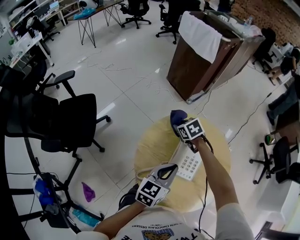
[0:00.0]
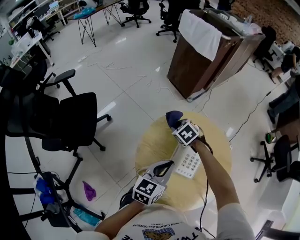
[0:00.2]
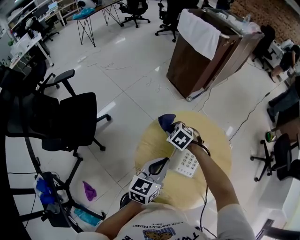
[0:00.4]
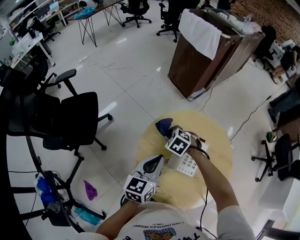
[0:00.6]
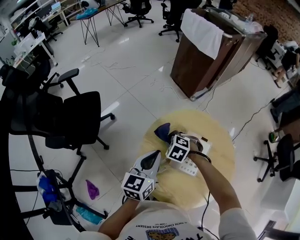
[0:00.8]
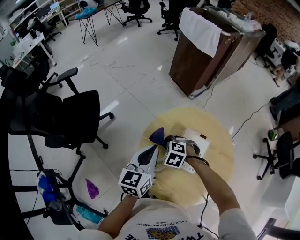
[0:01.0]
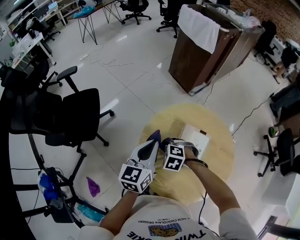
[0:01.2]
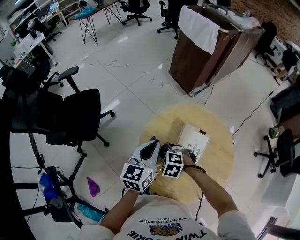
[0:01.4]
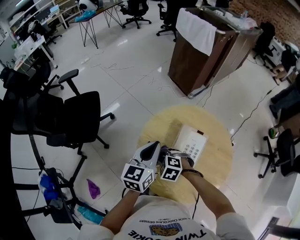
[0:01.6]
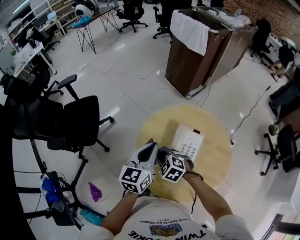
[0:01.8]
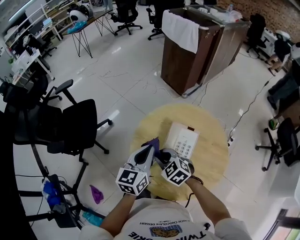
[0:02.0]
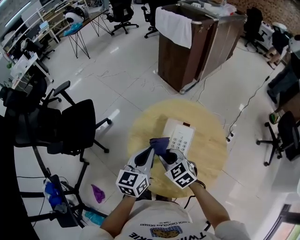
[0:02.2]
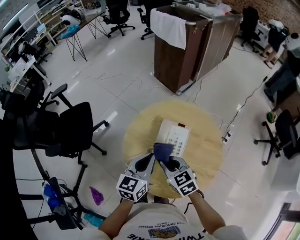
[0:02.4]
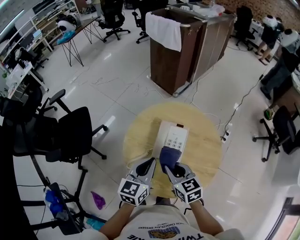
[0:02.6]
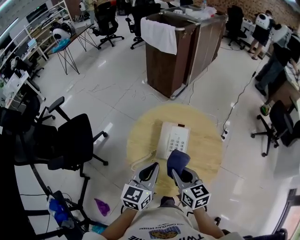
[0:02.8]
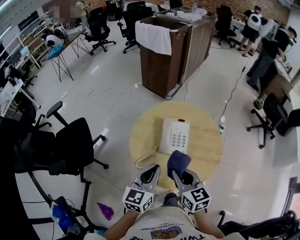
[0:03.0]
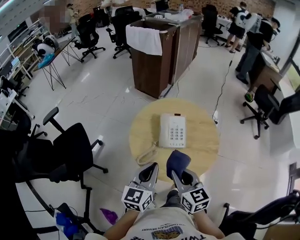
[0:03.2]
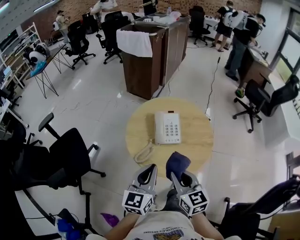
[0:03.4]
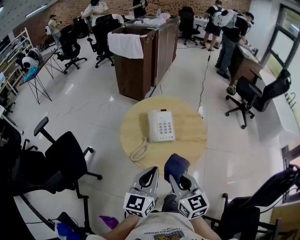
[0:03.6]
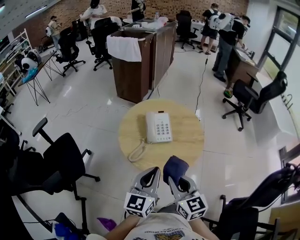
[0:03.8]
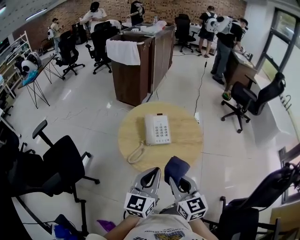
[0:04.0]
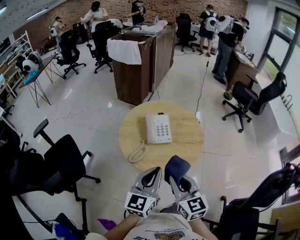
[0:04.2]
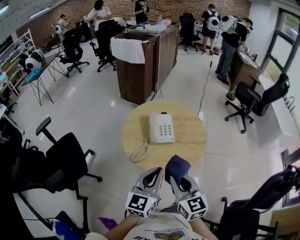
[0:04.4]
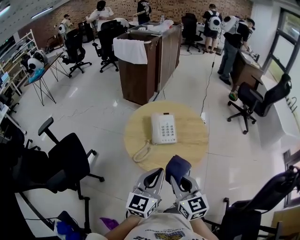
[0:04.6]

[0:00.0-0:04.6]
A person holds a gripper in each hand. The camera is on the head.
0:00.0 to 0:01.6: The right gripper shifts approximately 25 cm backward and to the left, and rotates around the line of its fingers by roughly 40 degrees, counterclockwise from behind. The left gripper heads to the left, covering some 10 cm.
0:01.6 to 0:03.0: The right gripper shifts approximately 15 cm upward, and tips its fingers upward by some 40 degrees. Meanwhile the left gripper changes place by some 15 cm.
0:03.0 to 0:04.6: The left gripper heads backward, covering some 10 cm, while the right gripper moves backward and upward, some 15 cm.

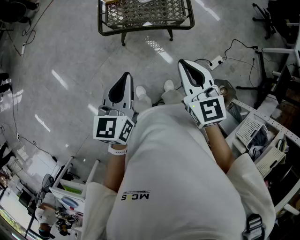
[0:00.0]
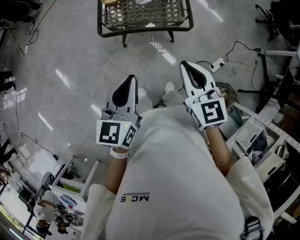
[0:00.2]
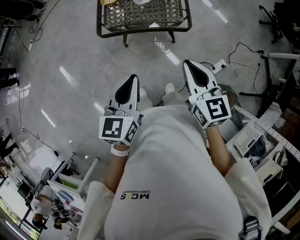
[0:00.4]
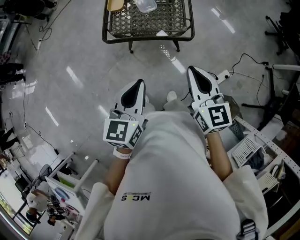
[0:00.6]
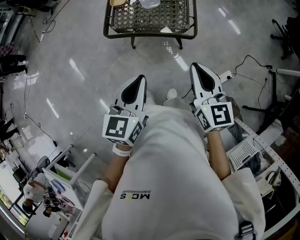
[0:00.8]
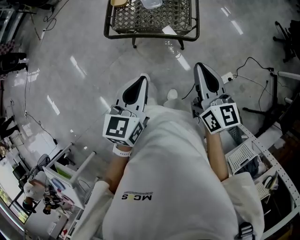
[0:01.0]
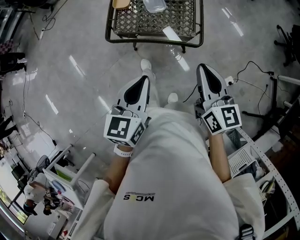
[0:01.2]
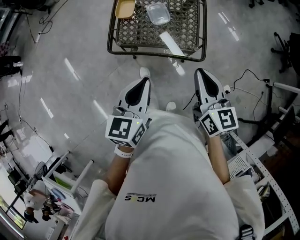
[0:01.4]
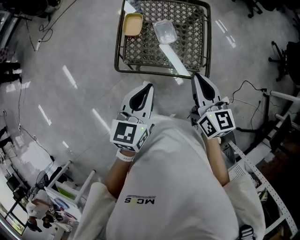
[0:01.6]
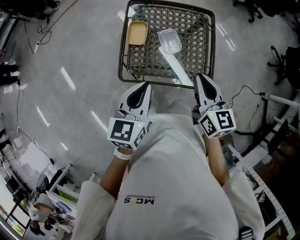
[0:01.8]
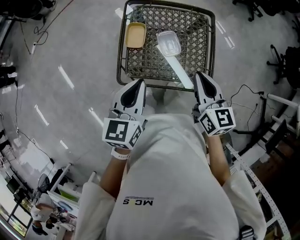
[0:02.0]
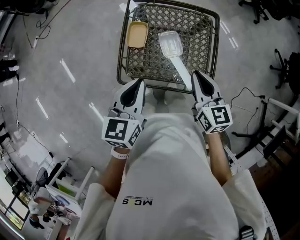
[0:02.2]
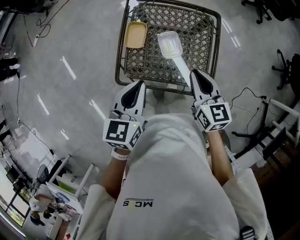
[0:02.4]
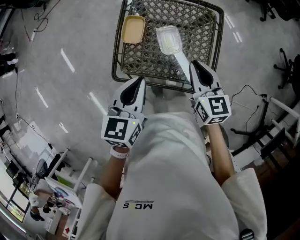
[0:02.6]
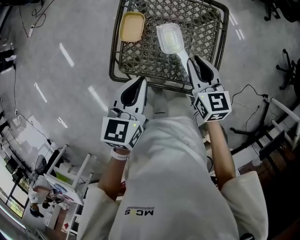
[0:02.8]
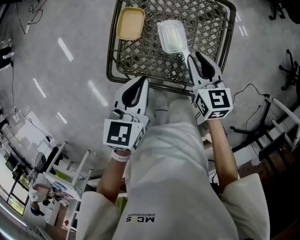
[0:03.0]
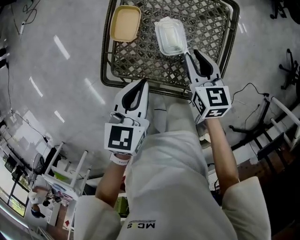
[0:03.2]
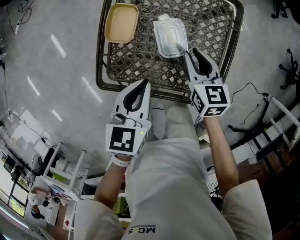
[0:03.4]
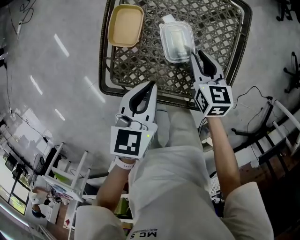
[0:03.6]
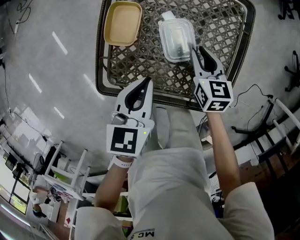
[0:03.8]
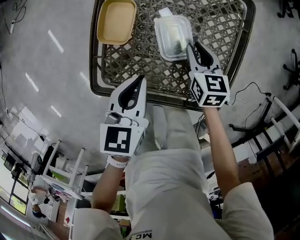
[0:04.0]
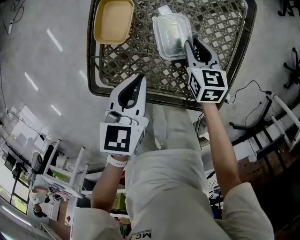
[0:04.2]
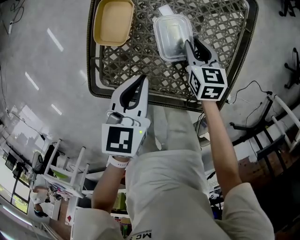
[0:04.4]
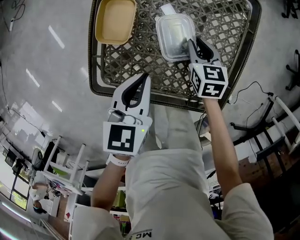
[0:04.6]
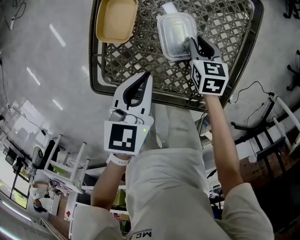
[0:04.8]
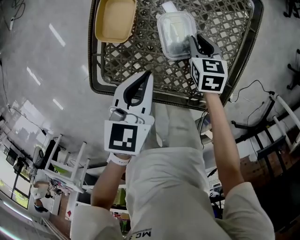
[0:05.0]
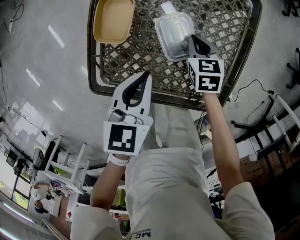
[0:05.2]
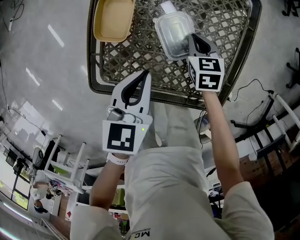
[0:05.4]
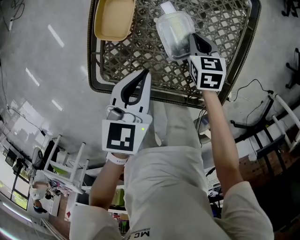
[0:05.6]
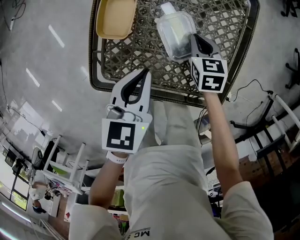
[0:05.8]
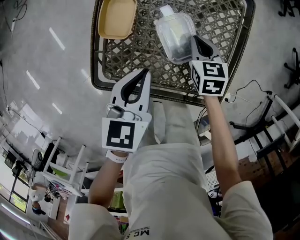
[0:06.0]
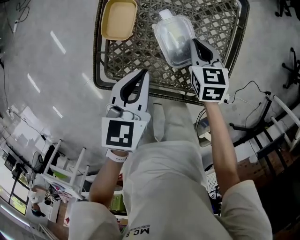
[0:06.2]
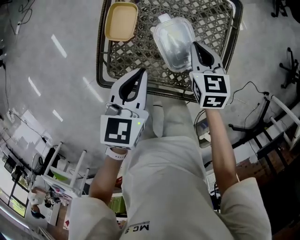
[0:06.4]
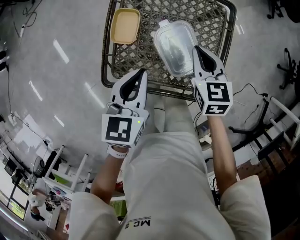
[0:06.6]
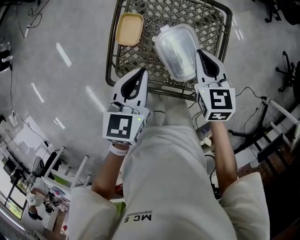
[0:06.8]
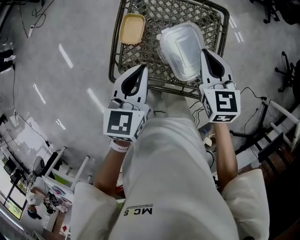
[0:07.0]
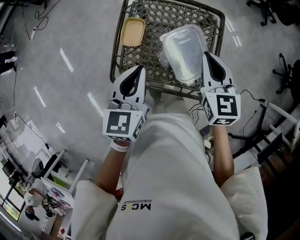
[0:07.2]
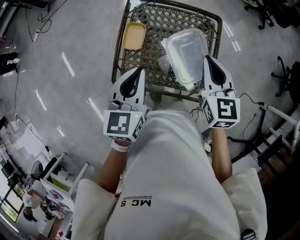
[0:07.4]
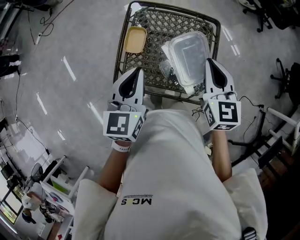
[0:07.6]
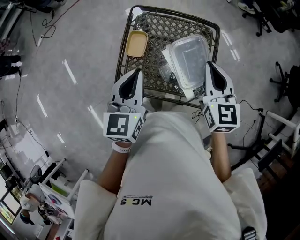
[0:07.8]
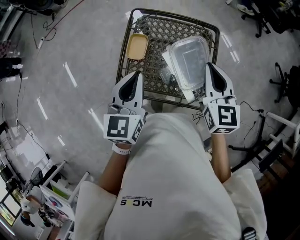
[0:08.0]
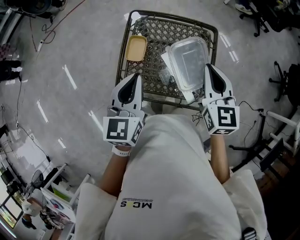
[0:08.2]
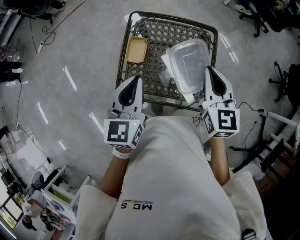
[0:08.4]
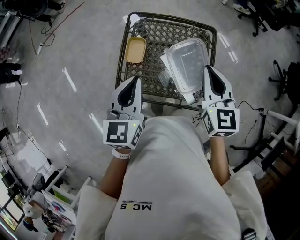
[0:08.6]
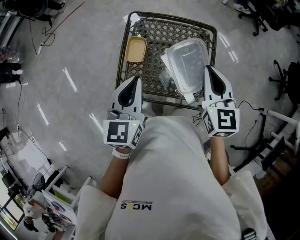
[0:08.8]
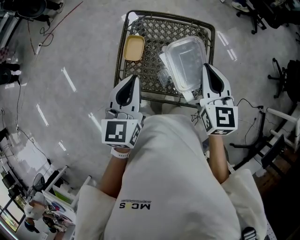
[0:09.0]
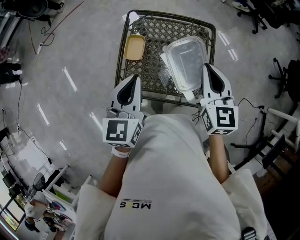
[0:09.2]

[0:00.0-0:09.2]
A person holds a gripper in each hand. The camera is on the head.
0:00.0 to 0:01.6: The two grippers go approximately 25 cm forward.
0:01.6 to 0:03.0: Both grippers move forward and downward, approximately 25 cm. The right gripper changes its angle by some 20 degrees.
0:03.0 to 0:04.6: The left gripper travels downward by approximately 15 cm. Meanwhile the right gripper shifts some 20 cm downward.
0:04.6 to 0:06.2: The right gripper shifts roughly 5 cm upward.
0:06.2 to 0:07.6: The right gripper is displaced upward by roughly 30 cm, and turns by roughly 30 degrees, while the left gripper is displaced upward by approximately 20 cm, and swivels about 20 degrees.
0:07.6 to 0:09.2: The grippers stay close to where they were, moving slightly.

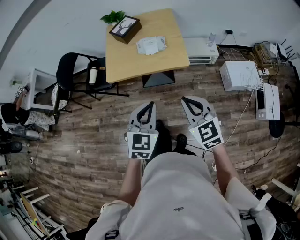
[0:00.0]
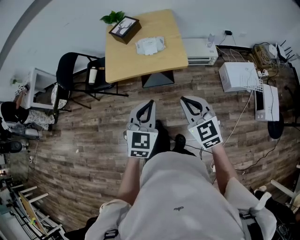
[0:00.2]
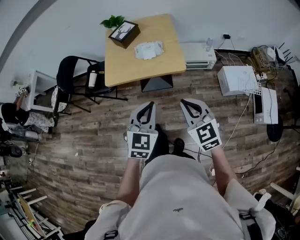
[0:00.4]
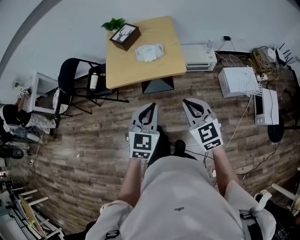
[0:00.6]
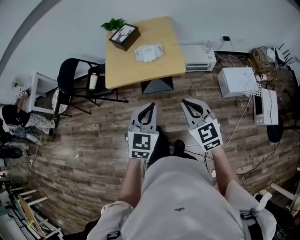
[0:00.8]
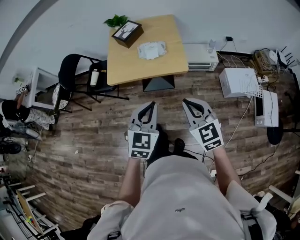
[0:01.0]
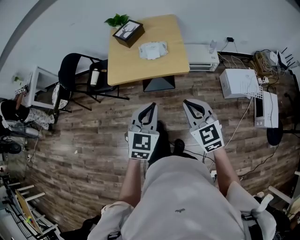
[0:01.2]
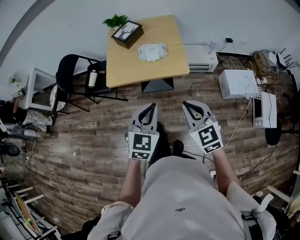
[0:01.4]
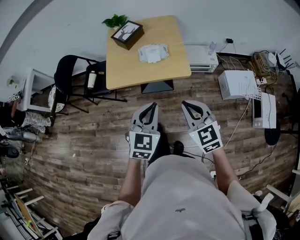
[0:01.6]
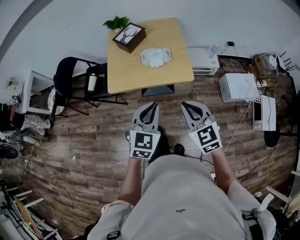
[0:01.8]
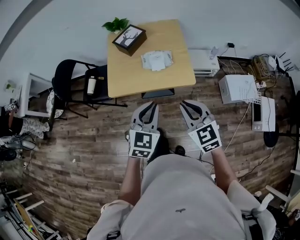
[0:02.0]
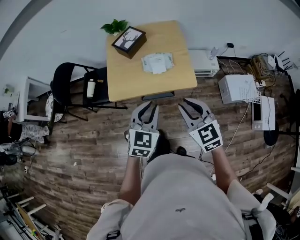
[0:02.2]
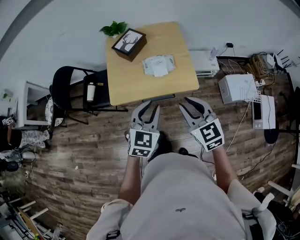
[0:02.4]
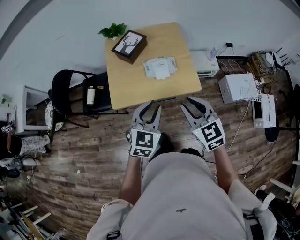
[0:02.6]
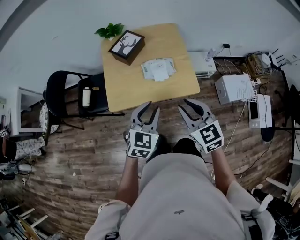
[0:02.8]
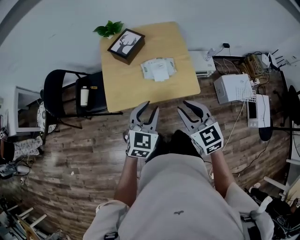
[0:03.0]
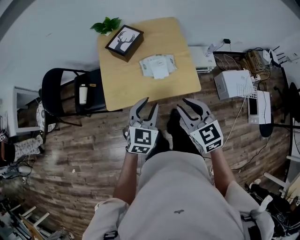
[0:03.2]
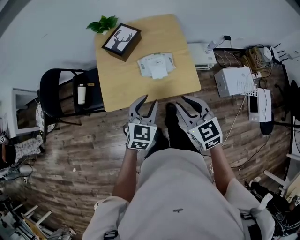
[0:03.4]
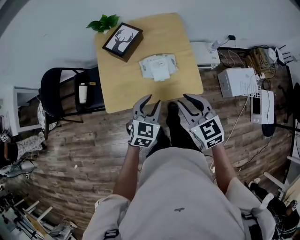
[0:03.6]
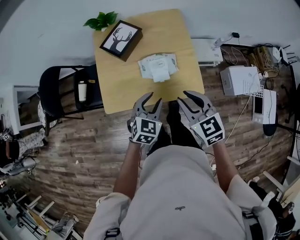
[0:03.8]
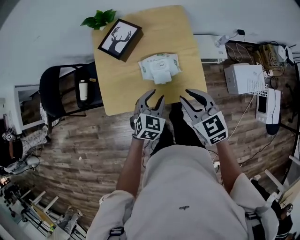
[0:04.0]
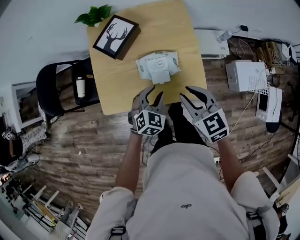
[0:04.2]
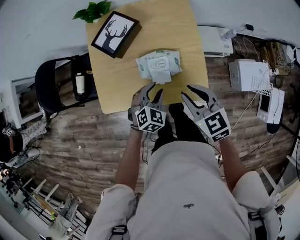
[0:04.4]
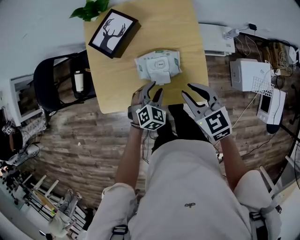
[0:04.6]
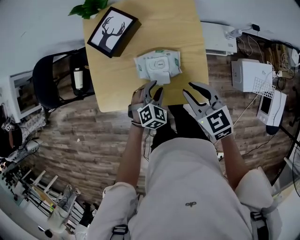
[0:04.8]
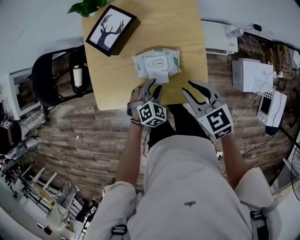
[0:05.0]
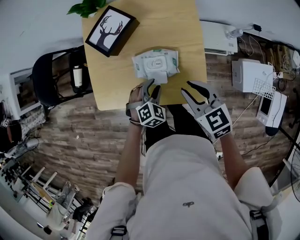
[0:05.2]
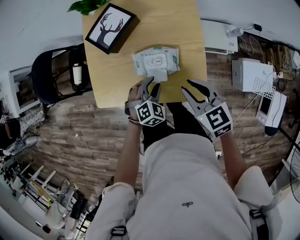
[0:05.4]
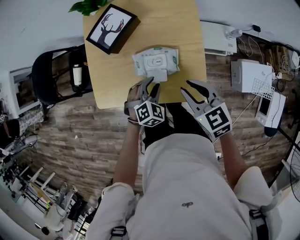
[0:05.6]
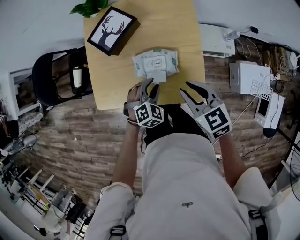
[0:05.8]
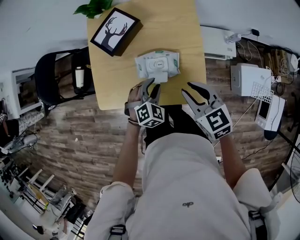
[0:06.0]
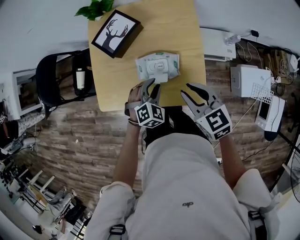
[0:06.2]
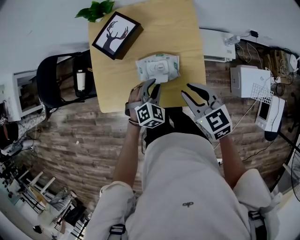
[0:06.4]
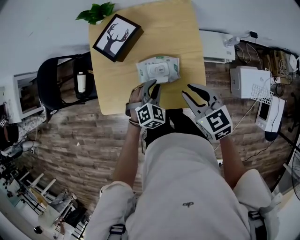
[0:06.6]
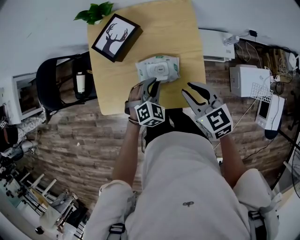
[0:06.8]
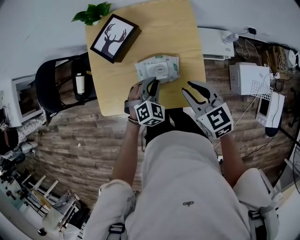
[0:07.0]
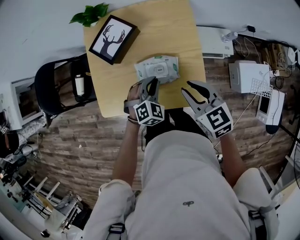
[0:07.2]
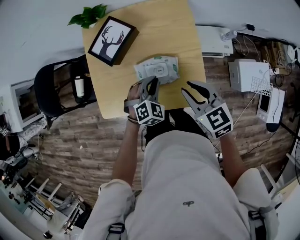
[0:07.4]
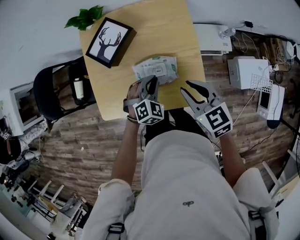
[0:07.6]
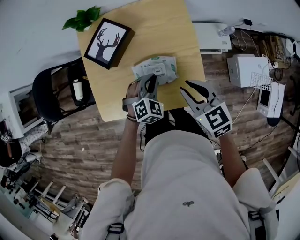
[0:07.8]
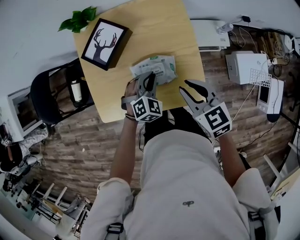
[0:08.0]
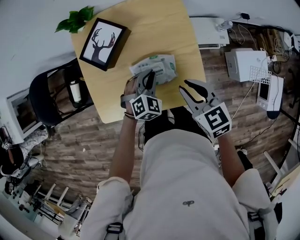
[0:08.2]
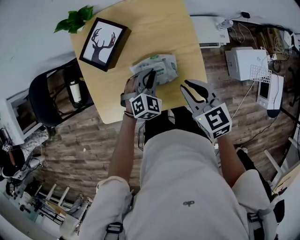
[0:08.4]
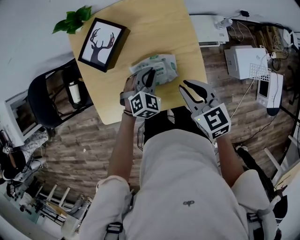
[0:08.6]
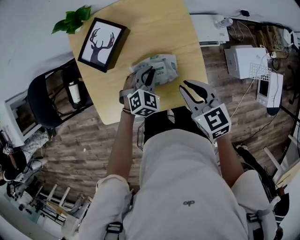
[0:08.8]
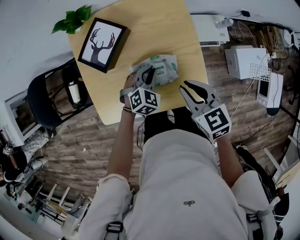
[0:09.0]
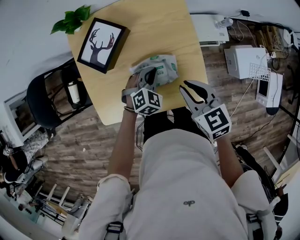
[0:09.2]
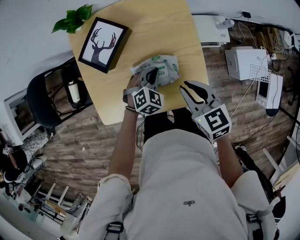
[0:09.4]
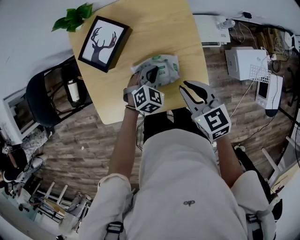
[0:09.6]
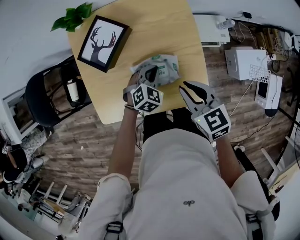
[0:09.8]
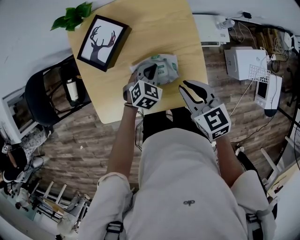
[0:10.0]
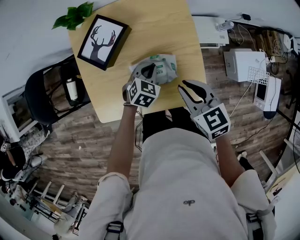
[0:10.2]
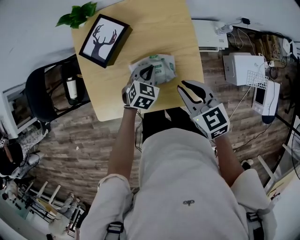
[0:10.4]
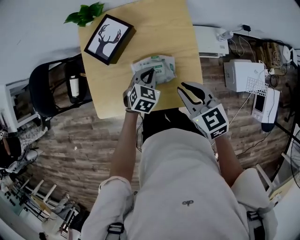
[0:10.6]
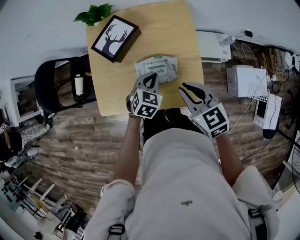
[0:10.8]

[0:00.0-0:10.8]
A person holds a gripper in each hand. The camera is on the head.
0:00.0 to 0:01.6: The grippers make only small movements.
0:01.6 to 0:03.0: The grippers both shift forward and to the left by about 20 cm. The left gripper opens; the right gripper opens its fingers.
0:03.0 to 0:04.6: The right gripper goes roughly 25 cm forward, downward and to the right. The left gripper moves downward and forward, some 30 cm, and changes its angle by roughly 30 degrees.
0:04.6 to 0:06.2: There are only small adjustments of the grippers.
0:06.2 to 0:07.8: The left gripper travels forward by about 5 cm, and closes its fingers.
0:07.8 to 0:09.2: The left gripper ends up about 5 cm from where it was.
0:09.2 to 0:10.8: The right gripper changes place by about 5 cm. Meanwhile the left gripper travels upward by approximately 5 cm, and turns by roughly 30 degrees.
